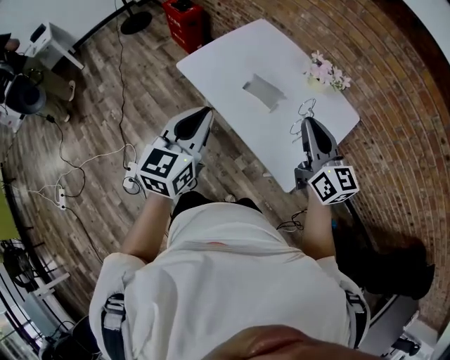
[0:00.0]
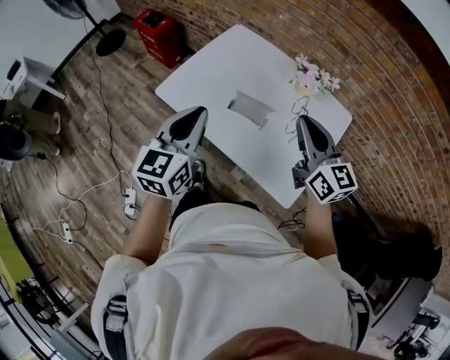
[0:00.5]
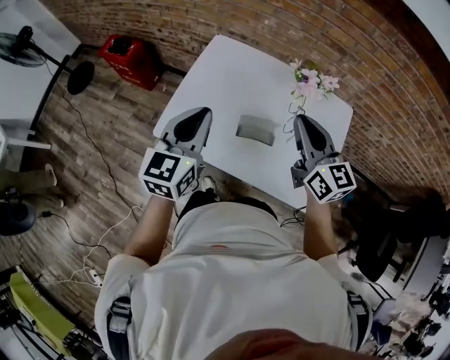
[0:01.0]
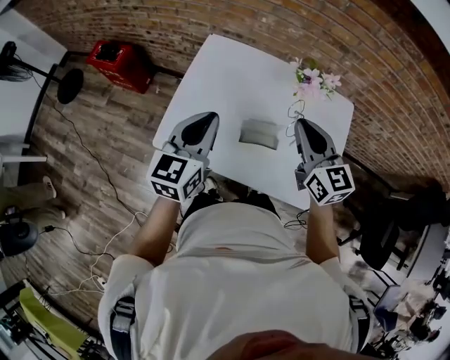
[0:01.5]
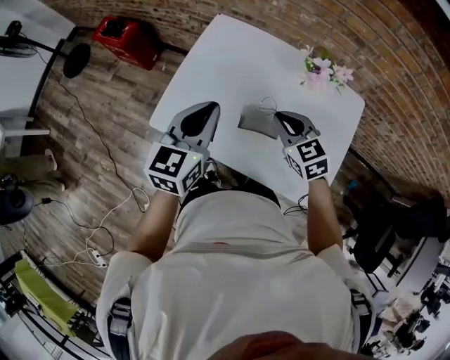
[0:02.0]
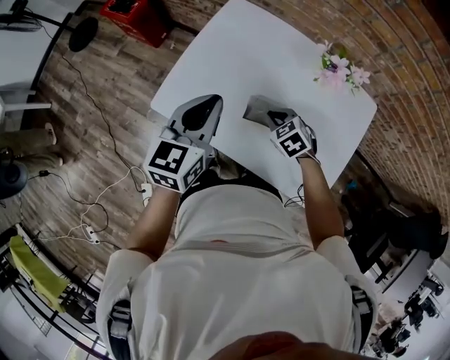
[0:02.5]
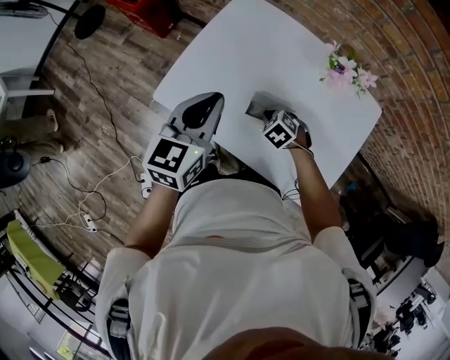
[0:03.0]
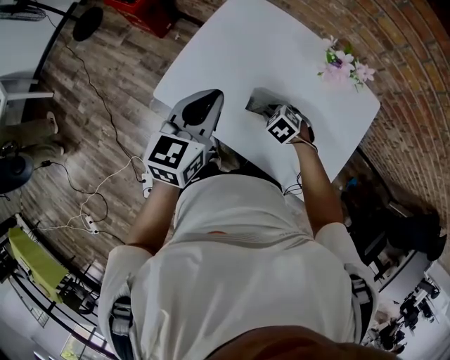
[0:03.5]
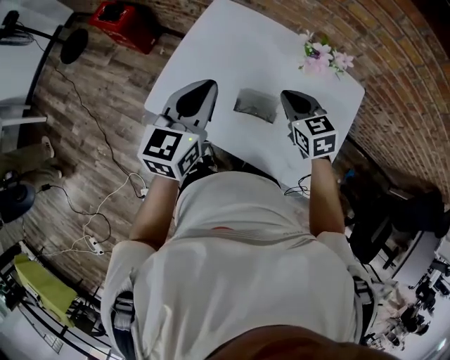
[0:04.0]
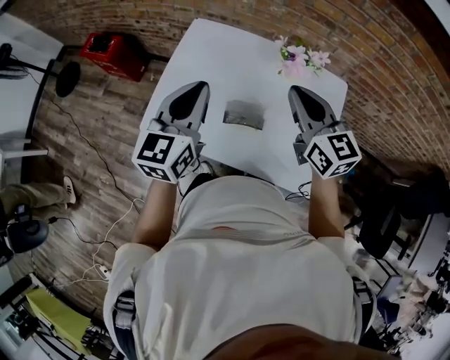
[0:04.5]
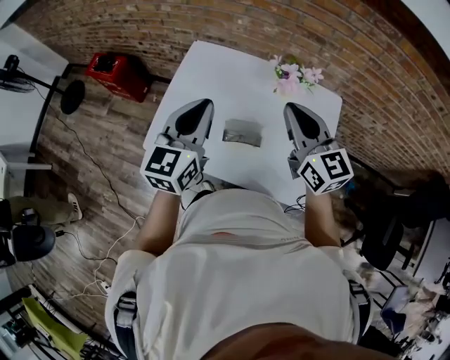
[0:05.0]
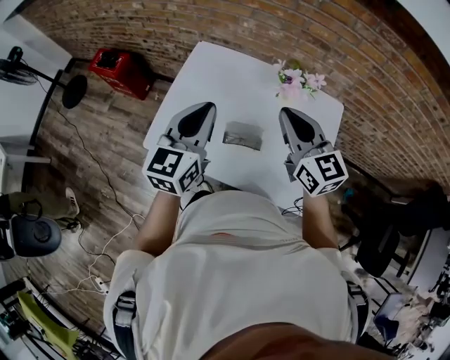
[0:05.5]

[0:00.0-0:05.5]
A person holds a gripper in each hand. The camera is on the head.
0:00.0 to 0:02.0: The left gripper shifts by about 30 cm, and changes its angle by approximately 20 degrees; the right gripper ends up roughly 30 cm from where it was, and points its fingers approximately 30 degrees further downward.
0:02.0 to 0:03.5: The right gripper heads downward, covering about 20 cm, and angles its fingers downward, by about 30 degrees.
0:03.5 to 0:05.5: The left gripper goes about 10 cm upward and to the right, while the right gripper moves upward, about 35 cm, angles its fingers upward, by approximately 60 degrees, and closes.

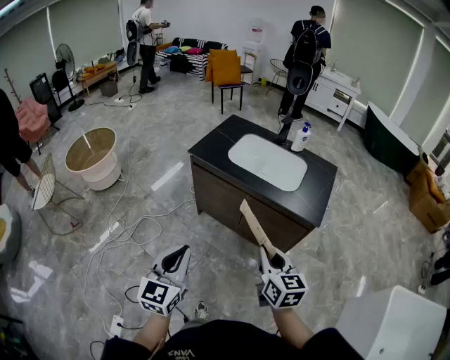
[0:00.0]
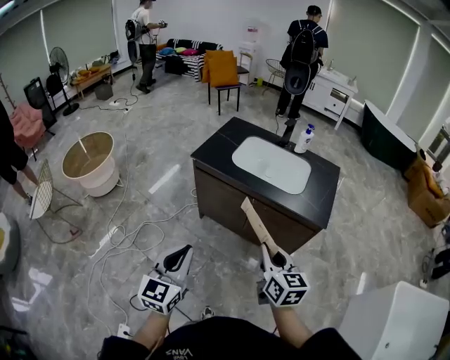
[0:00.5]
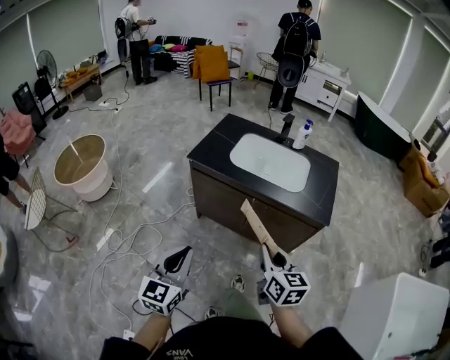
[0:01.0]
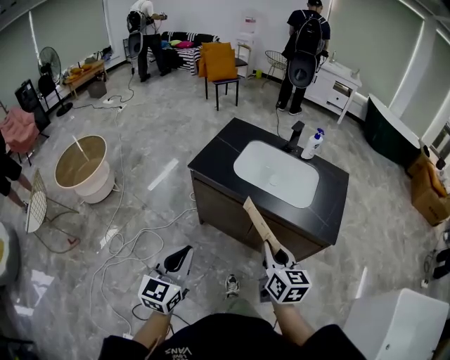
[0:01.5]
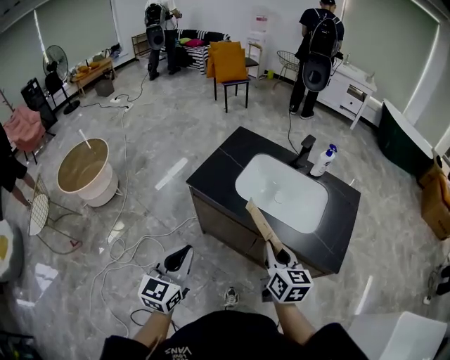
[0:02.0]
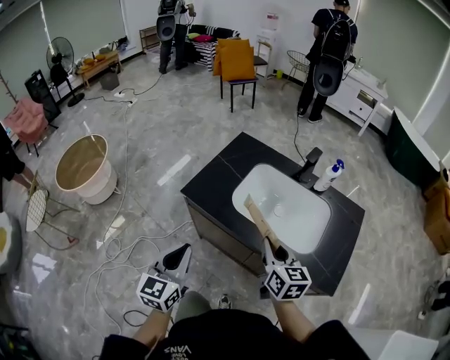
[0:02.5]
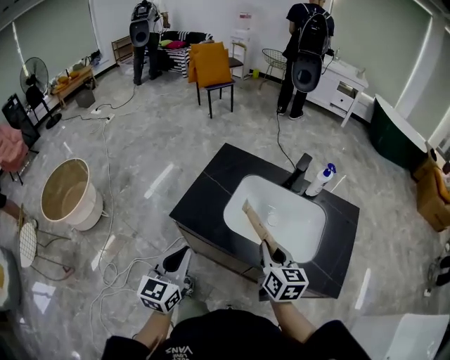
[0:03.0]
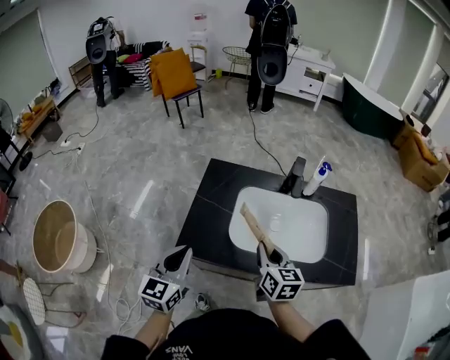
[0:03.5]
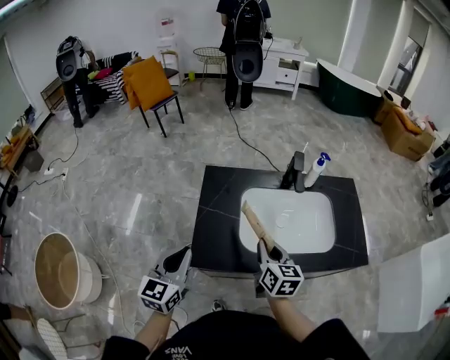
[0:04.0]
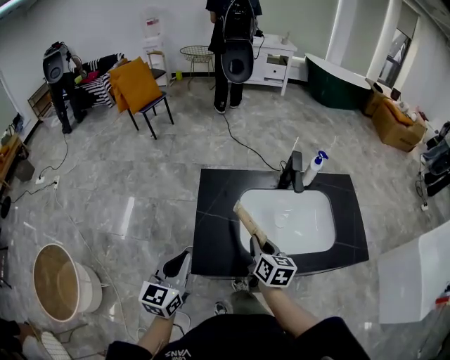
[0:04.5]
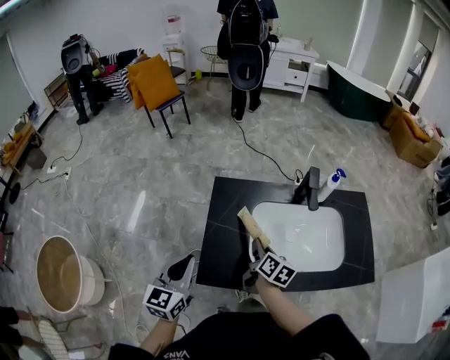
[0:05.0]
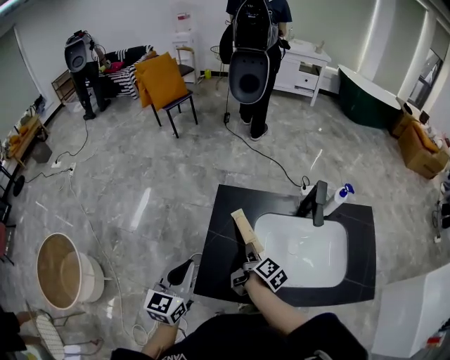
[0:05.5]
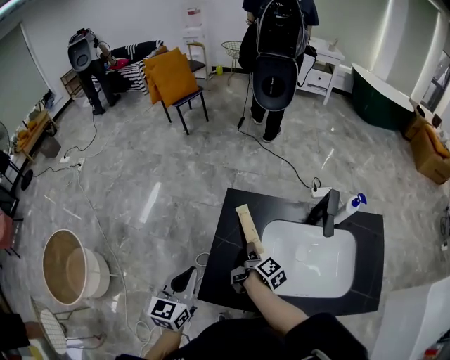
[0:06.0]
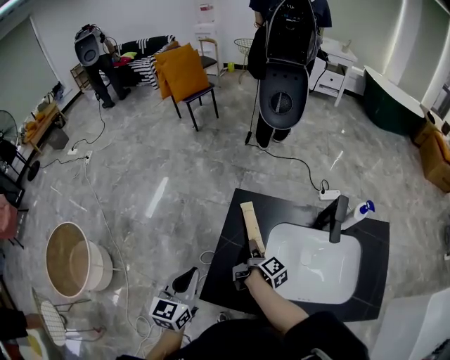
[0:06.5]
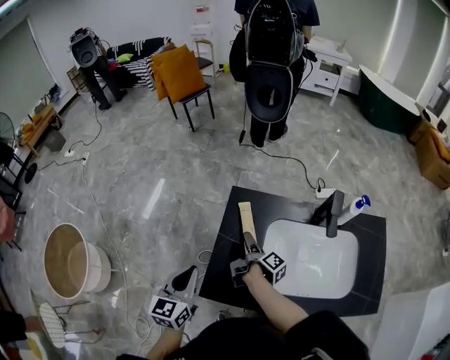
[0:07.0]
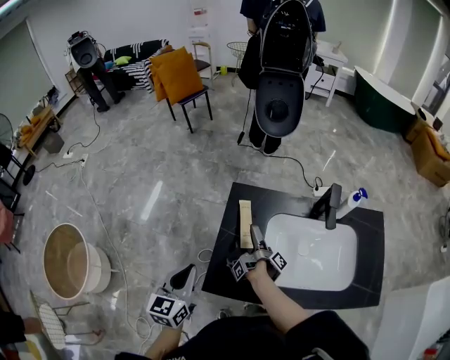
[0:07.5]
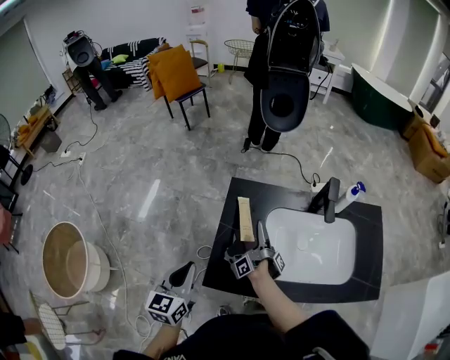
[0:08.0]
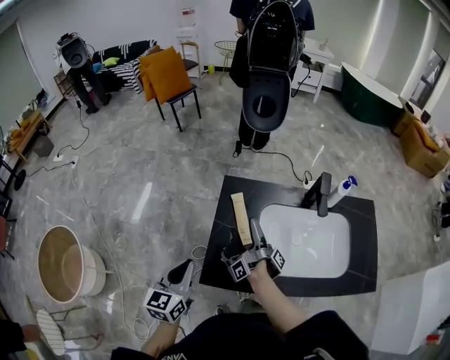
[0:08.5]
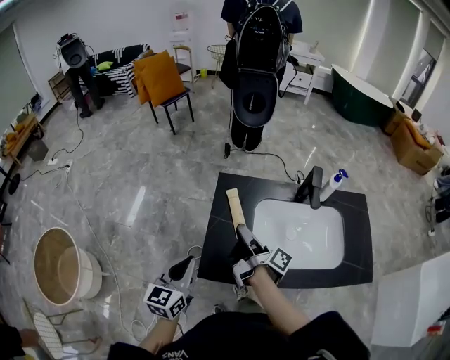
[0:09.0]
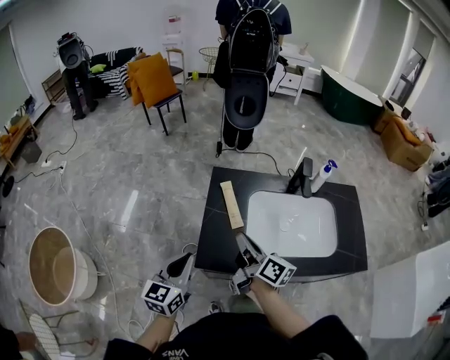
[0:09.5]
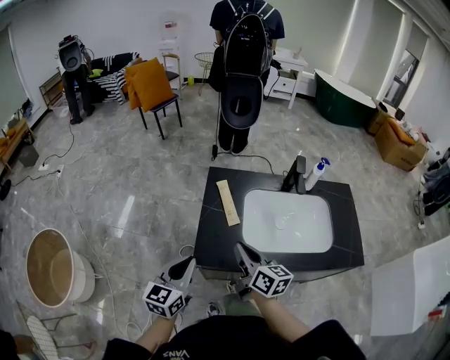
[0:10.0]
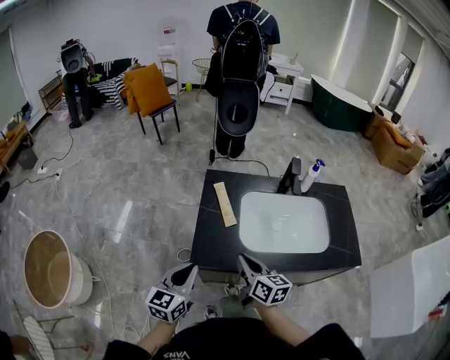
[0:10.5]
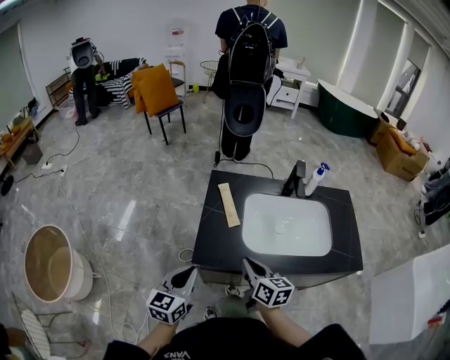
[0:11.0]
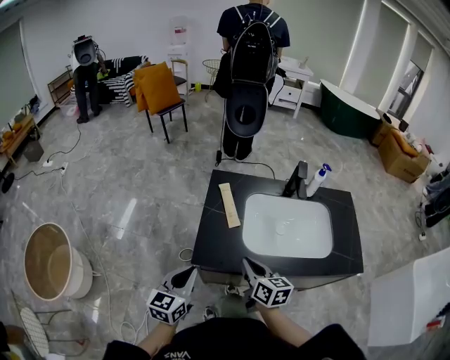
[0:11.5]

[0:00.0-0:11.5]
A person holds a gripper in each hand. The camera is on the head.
0:00.0 to 0:02.0: Both grippers move forward, some 25 cm.
0:02.0 to 0:04.0: The right gripper ends up roughly 25 cm from where it was, and swivels approximately 30 degrees. Meanwhile the left gripper changes place by approximately 35 cm, and turns by approximately 30 degrees.
0:04.0 to 0:06.0: The left gripper travels forward by about 10 cm. The right gripper travels forward, downward and to the left by about 25 cm, and rolls clockwise, seen from behind, by approximately 60 degrees.
0:06.0 to 0:07.5: The right gripper moves approximately 5 cm, rolls clockwise, seen from behind, by about 40 degrees, and opens up.
0:07.5 to 0:09.5: The right gripper shifts some 20 cm backward and upward, twists about 70 degrees counterclockwise, seen from behind, and closes. The left gripper moves backward, approximately 5 cm.
0:09.5 to 0:11.5: The left gripper shifts approximately 5 cm backward. Meanwhile the right gripper is displaced backward and downward by roughly 10 cm, and rotates about 30 degrees.

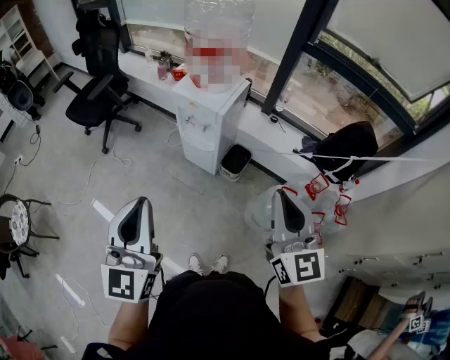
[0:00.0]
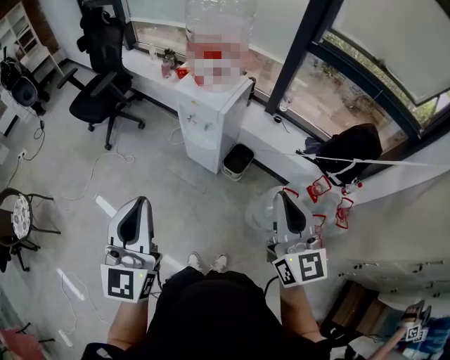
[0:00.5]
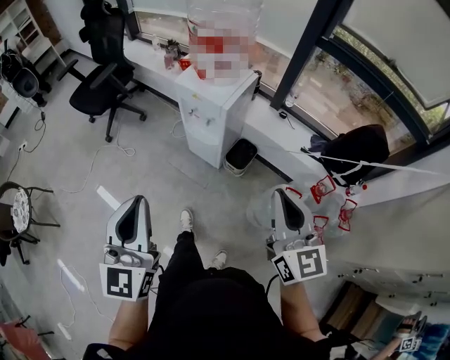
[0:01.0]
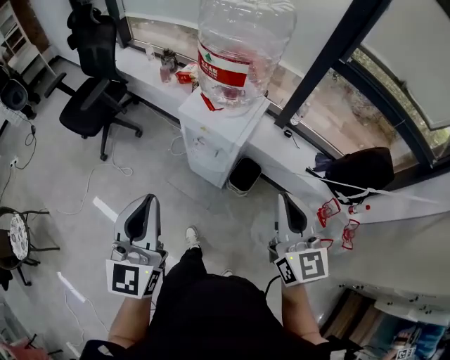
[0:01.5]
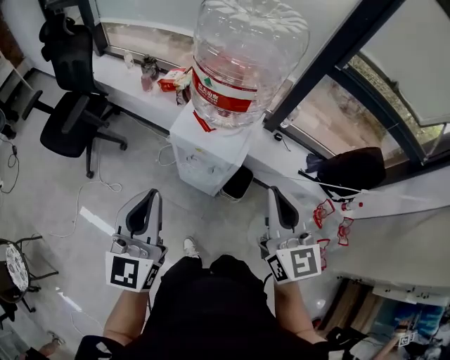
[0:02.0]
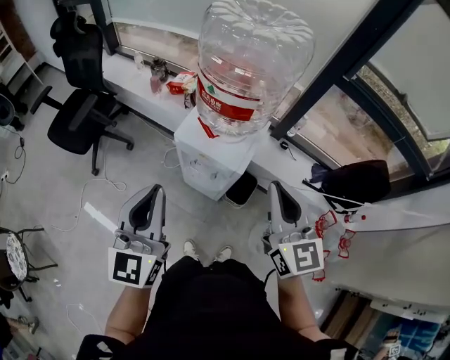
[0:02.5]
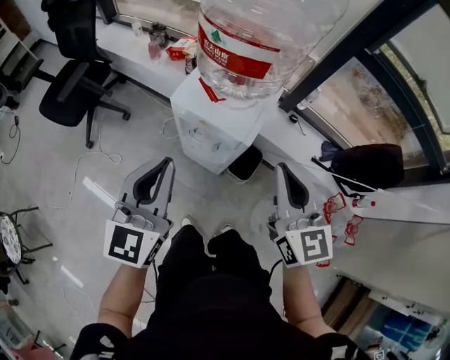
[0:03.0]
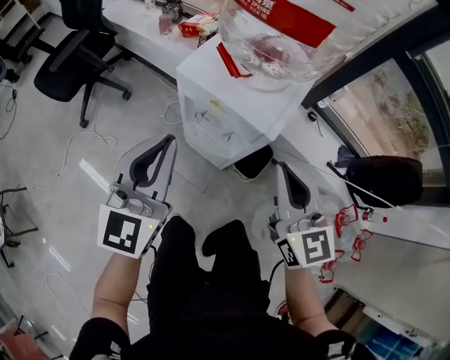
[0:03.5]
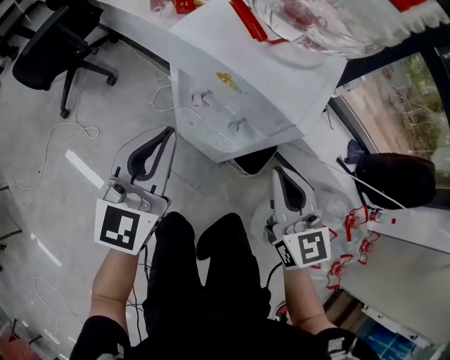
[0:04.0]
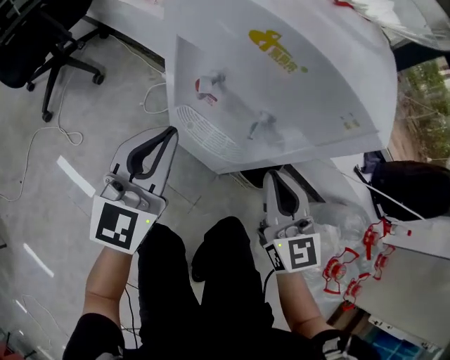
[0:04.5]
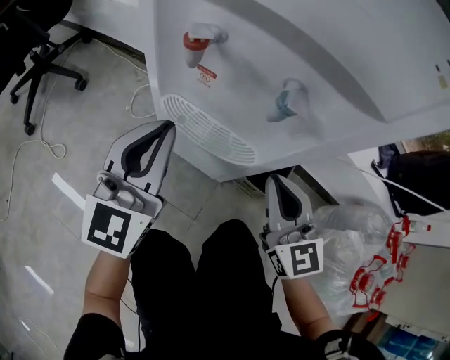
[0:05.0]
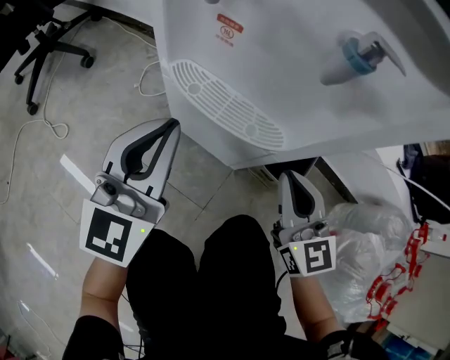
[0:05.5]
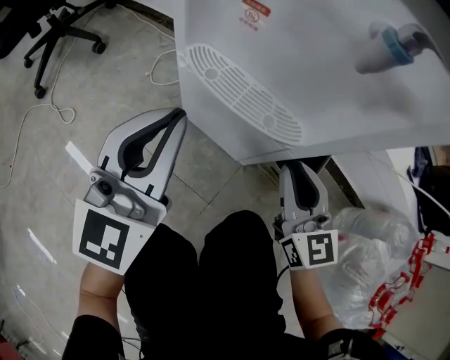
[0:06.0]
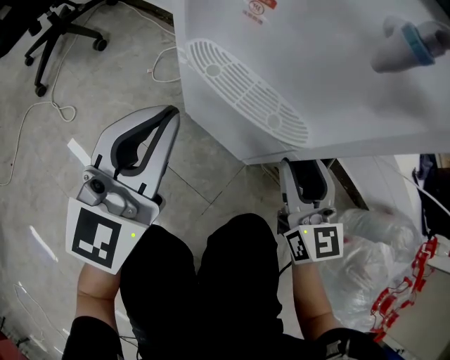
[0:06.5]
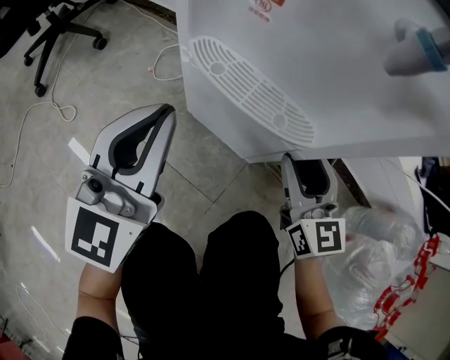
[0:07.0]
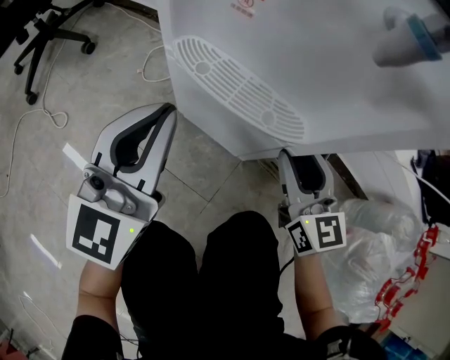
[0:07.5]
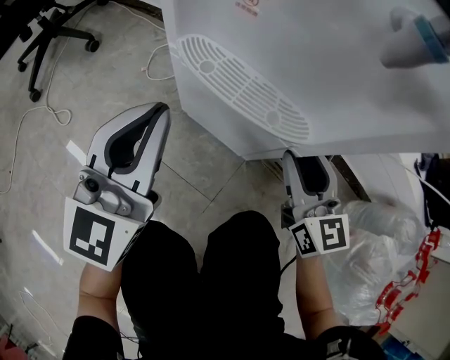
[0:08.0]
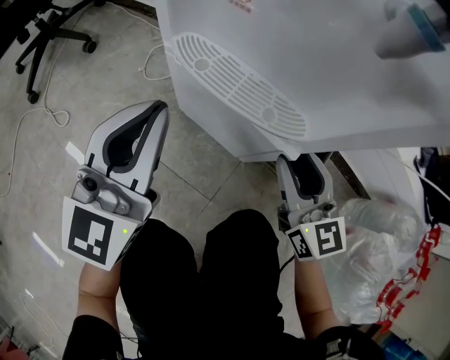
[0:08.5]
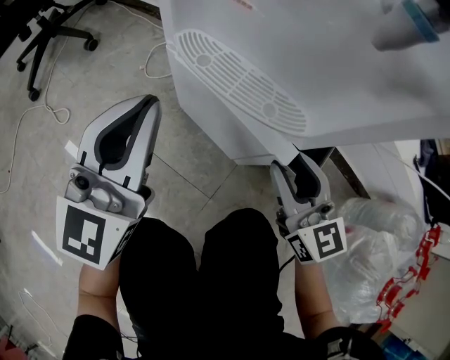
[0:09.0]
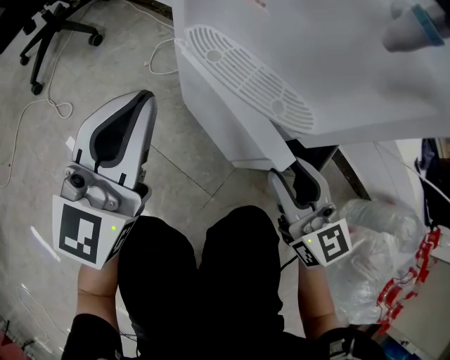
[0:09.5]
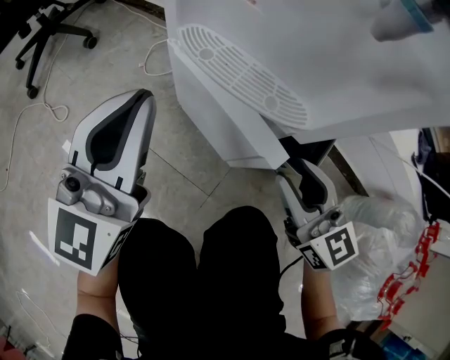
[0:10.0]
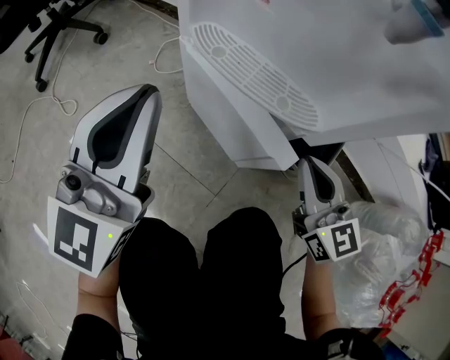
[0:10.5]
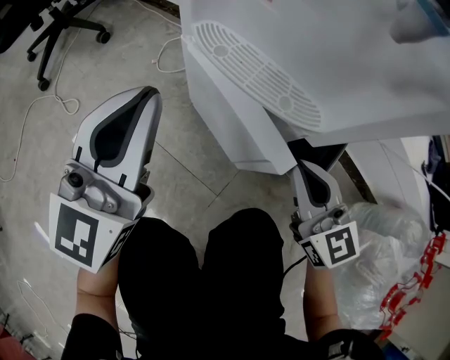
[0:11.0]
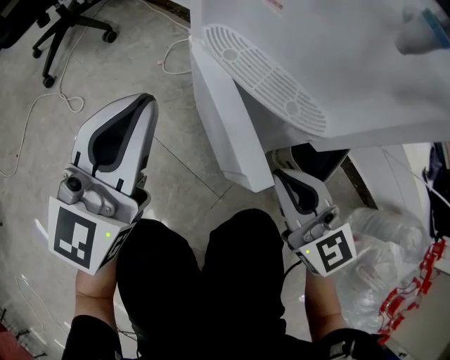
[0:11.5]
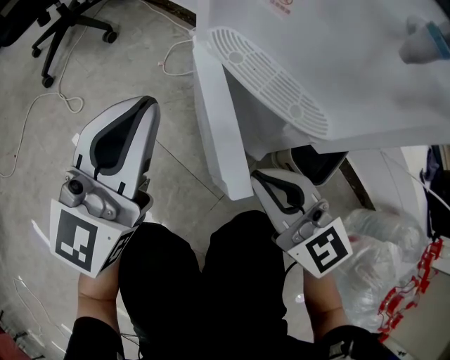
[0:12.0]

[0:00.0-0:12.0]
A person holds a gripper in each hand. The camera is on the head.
0:00.0 to 0:02.0: Both grippers move forward, some 30 cm.
0:02.0 to 0:04.0: The two grippers go some 35 cm downward.
0:04.0 to 0:06.0: The grippers both shift downward by approximately 35 cm.
0:06.0 to 0:08.0: The right gripper opens its fingers.
0:08.0 to 0:10.0: The right gripper is displaced backward by approximately 5 cm.
0:10.0 to 0:12.0: The right gripper heads to the left, covering some 10 cm, and closes up.
